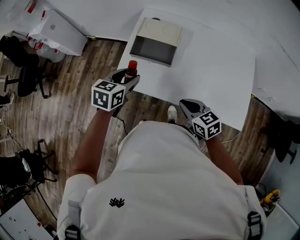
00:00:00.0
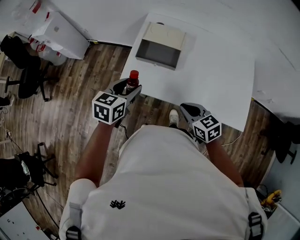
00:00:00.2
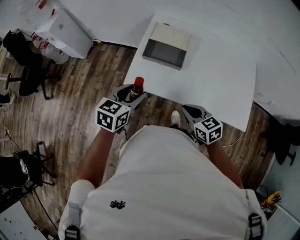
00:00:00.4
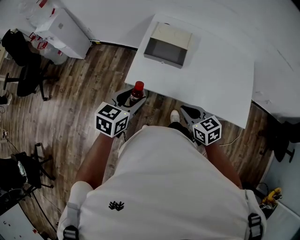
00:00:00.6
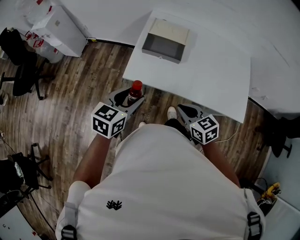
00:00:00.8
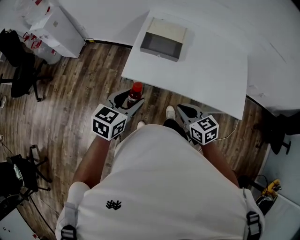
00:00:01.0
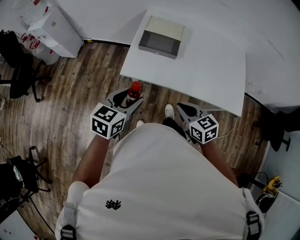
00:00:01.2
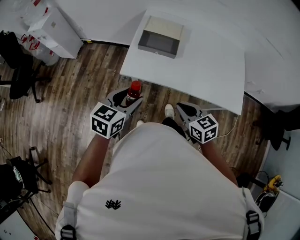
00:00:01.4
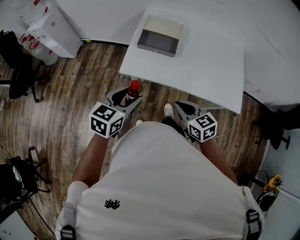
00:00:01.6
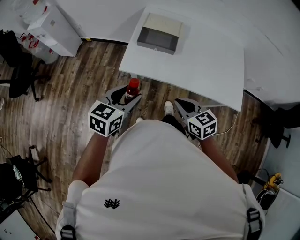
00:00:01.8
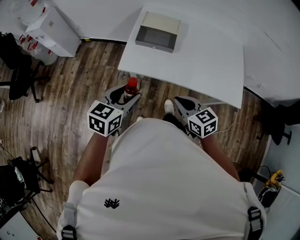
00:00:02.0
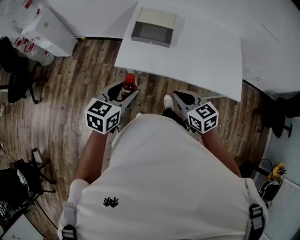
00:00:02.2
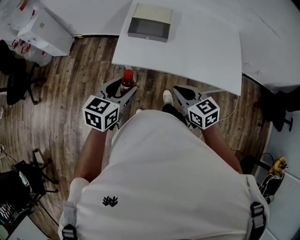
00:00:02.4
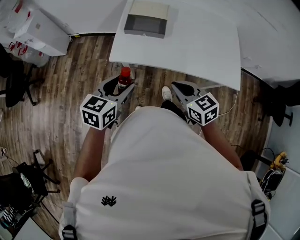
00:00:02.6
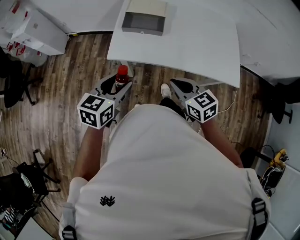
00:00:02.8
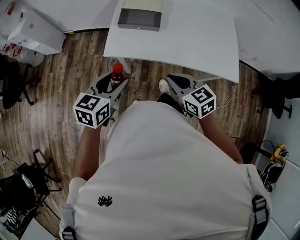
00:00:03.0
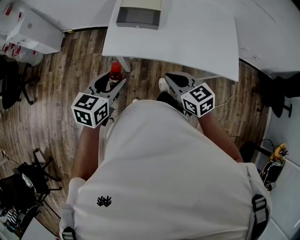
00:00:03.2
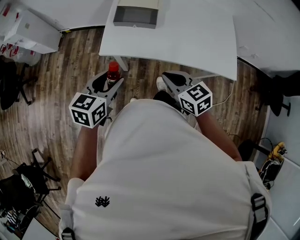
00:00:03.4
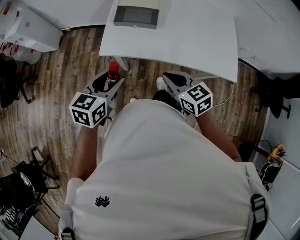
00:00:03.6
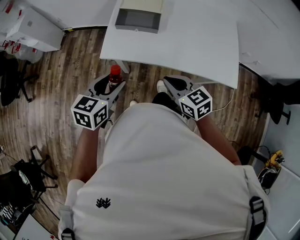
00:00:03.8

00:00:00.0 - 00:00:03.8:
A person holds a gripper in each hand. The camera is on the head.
00:00:00.0 - 00:00:01.2: The right gripper moves backward and to the left, approximately 10 cm. Meanwhile the left gripper goes about 15 cm backward.
00:00:01.2 - 00:00:03.8: The grippers make only small movements.

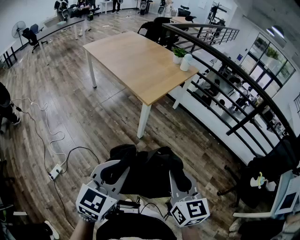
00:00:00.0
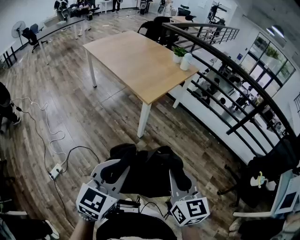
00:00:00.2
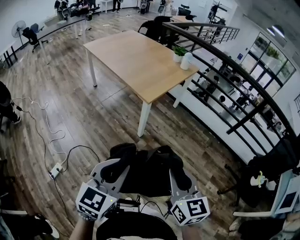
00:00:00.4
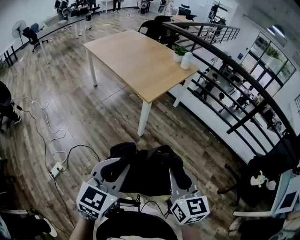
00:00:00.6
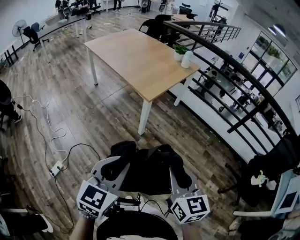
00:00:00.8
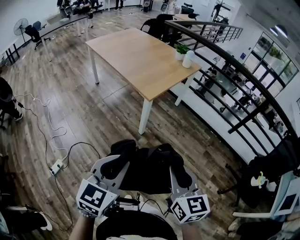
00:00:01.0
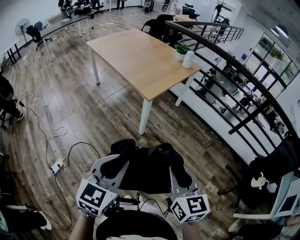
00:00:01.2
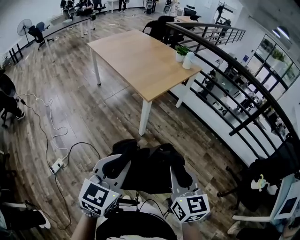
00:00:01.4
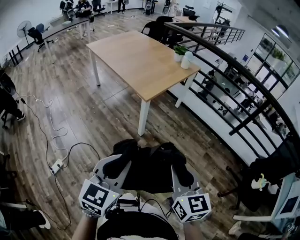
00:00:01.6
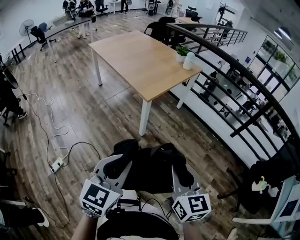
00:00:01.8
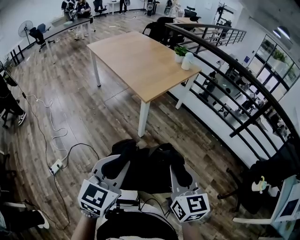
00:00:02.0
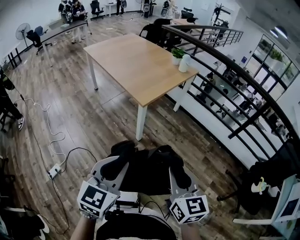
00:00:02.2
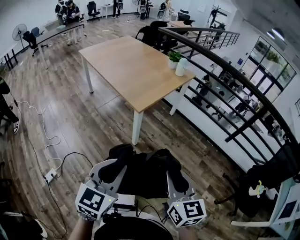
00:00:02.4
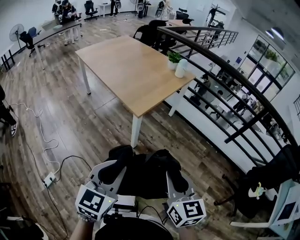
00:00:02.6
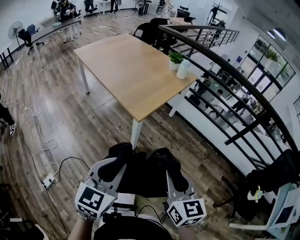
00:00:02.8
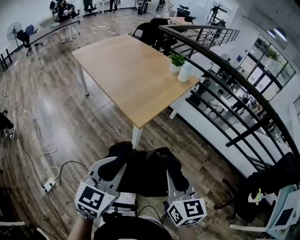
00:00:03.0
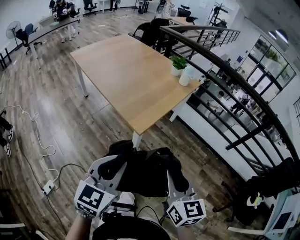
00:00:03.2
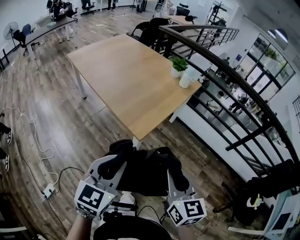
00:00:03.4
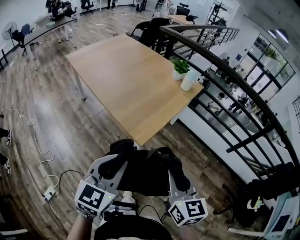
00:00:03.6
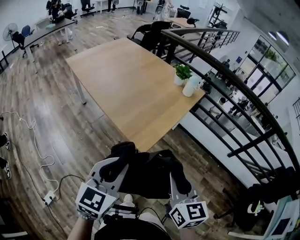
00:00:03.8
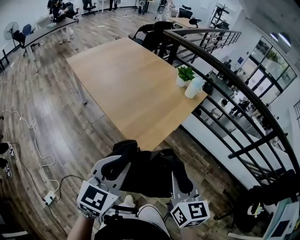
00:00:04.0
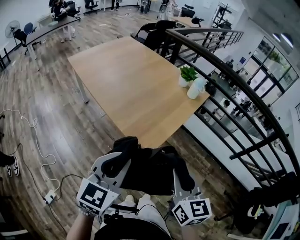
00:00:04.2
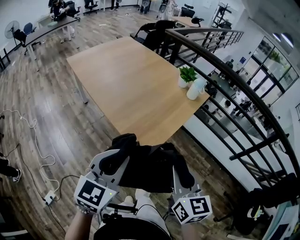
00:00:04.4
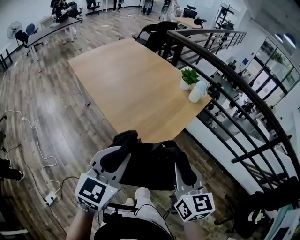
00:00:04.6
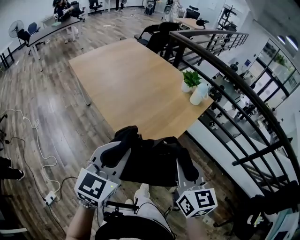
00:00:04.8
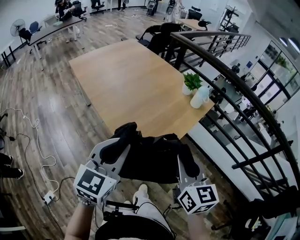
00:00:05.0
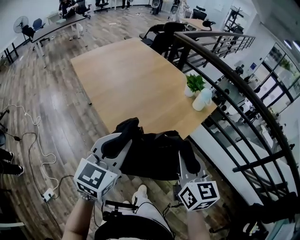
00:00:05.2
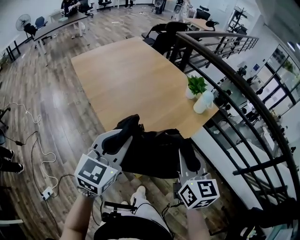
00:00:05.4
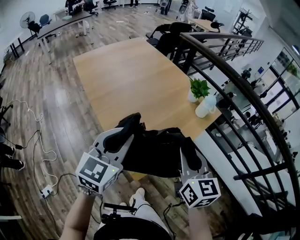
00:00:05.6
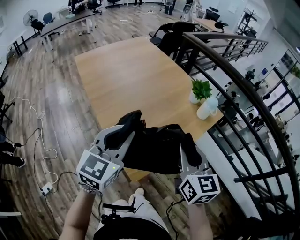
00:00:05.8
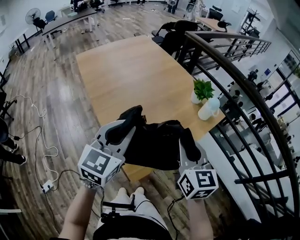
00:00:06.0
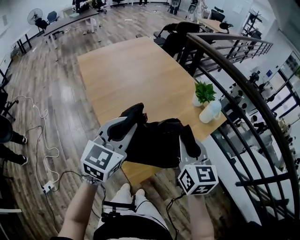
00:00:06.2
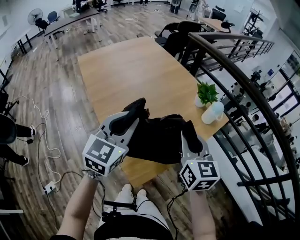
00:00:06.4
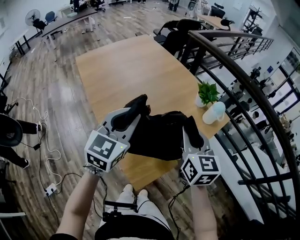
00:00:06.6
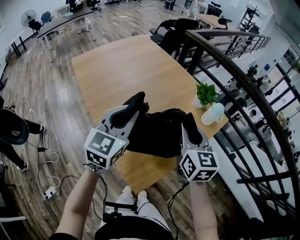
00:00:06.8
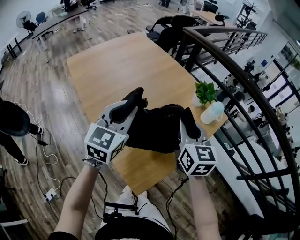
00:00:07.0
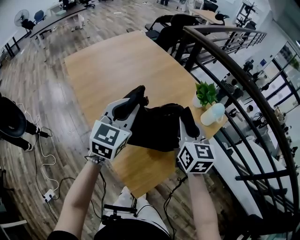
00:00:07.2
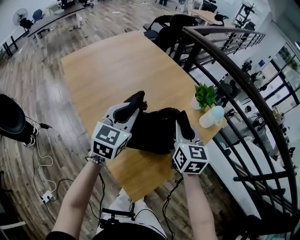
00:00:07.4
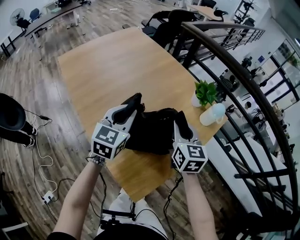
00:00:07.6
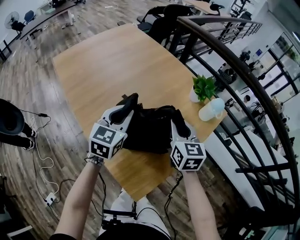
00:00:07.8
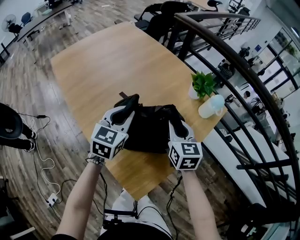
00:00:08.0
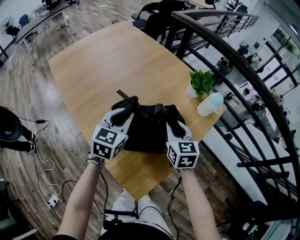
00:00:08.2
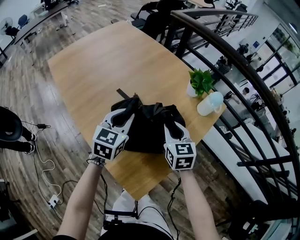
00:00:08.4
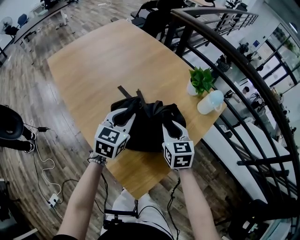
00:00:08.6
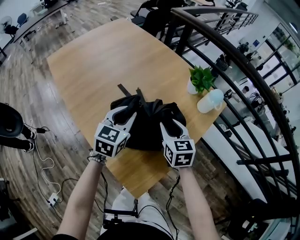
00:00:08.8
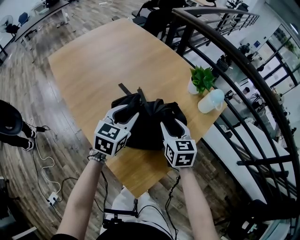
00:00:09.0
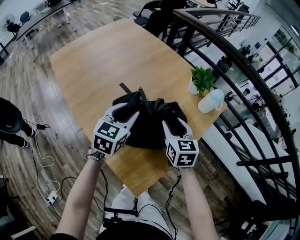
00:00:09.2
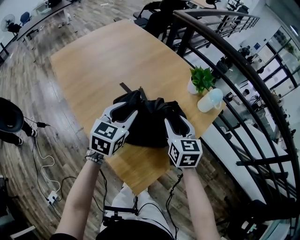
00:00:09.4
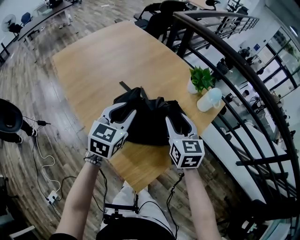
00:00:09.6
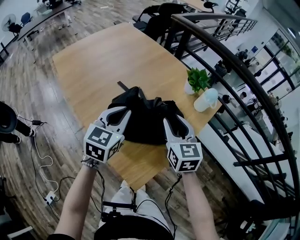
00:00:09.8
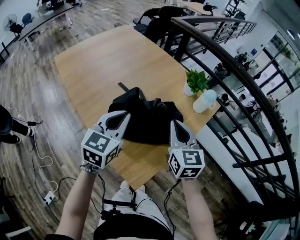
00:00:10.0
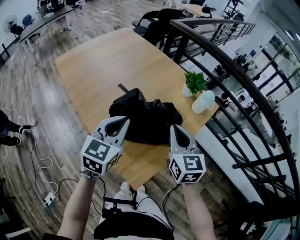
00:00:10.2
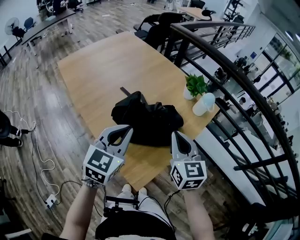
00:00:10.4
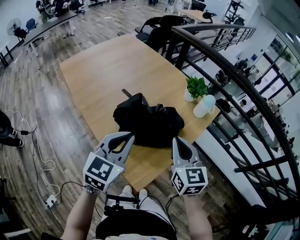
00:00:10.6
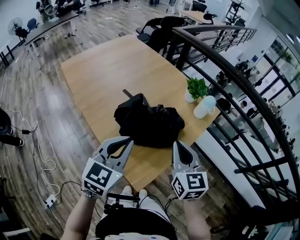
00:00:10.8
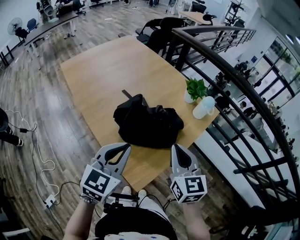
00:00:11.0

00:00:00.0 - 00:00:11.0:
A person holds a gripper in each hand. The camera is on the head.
00:00:00.0 - 00:00:01.6: The right gripper heads to the right, covering about 5 cm.
00:00:01.6 - 00:00:03.2: Both grippers move forward, about 25 cm.
00:00:03.2 - 00:00:04.8: The grippers both shift forward by approximately 25 cm.
00:00:04.8 - 00:00:06.2: The two grippers go some 20 cm forward.
00:00:06.2 - 00:00:07.8: The two grippers go some 20 cm forward and downward.
00:00:07.8 - 00:00:09.4: The right gripper opens. Meanwhile the left gripper opens.
00:00:09.4 - 00:00:11.0: The two grippers go about 20 cm backward and upward. The right gripper closes its fingers, while the left gripper closes.

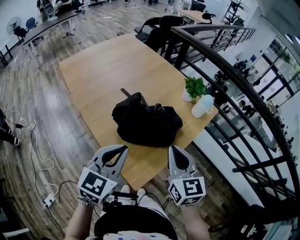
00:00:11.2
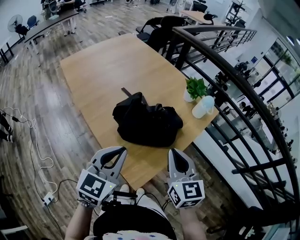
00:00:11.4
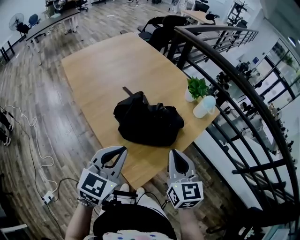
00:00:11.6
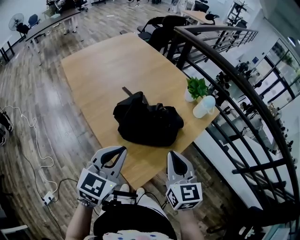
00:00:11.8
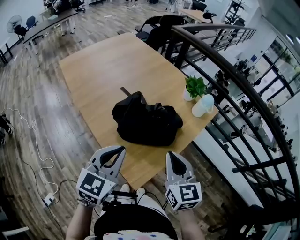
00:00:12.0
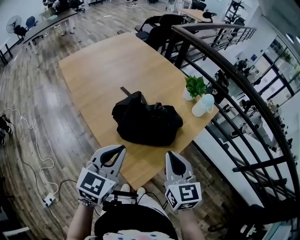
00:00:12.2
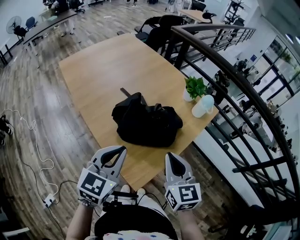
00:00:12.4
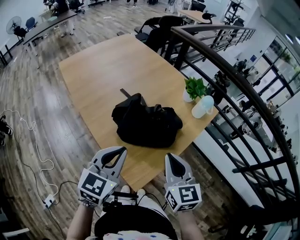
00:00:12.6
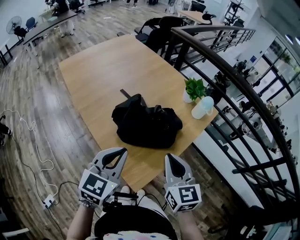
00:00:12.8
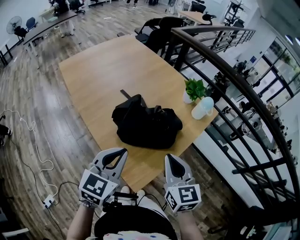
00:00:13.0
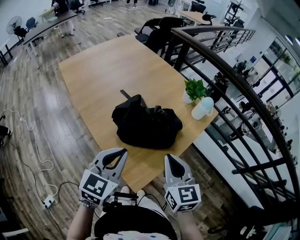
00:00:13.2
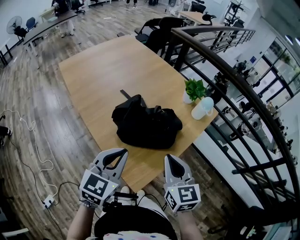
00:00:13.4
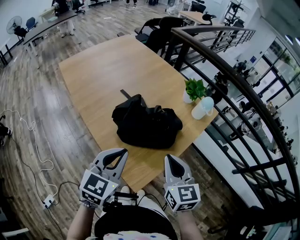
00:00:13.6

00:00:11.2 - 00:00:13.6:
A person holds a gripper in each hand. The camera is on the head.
00:00:11.2 - 00:00:12.4: There are only small adjustments of the grippers.
00:00:12.4 - 00:00:13.6: The two grippers keep their place.

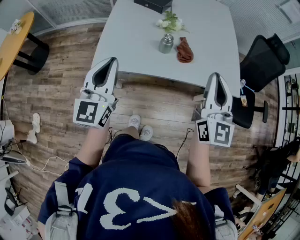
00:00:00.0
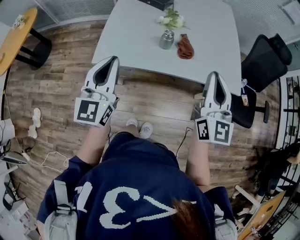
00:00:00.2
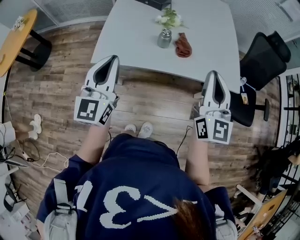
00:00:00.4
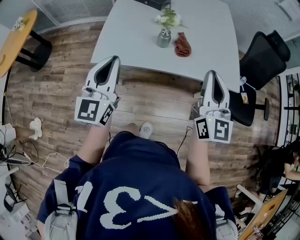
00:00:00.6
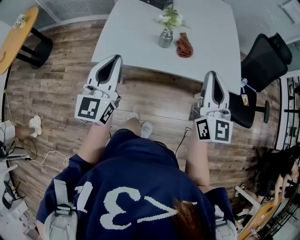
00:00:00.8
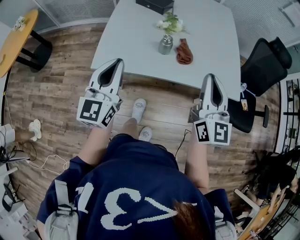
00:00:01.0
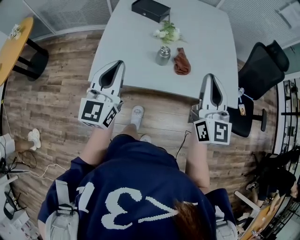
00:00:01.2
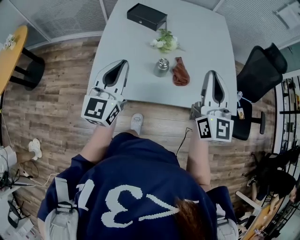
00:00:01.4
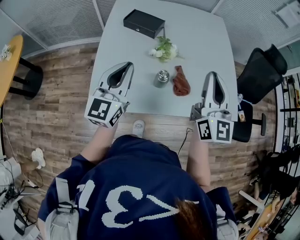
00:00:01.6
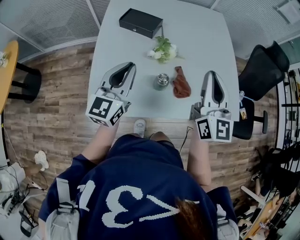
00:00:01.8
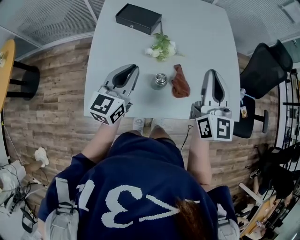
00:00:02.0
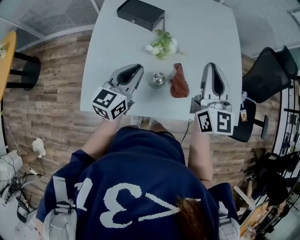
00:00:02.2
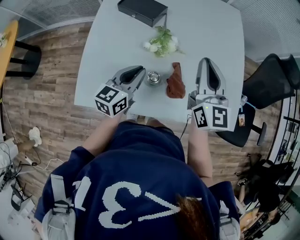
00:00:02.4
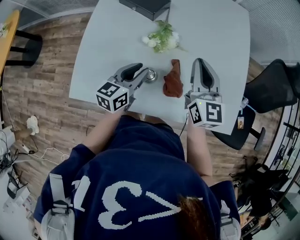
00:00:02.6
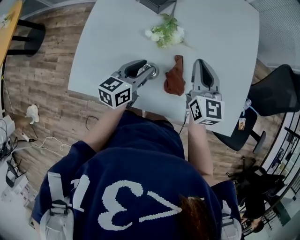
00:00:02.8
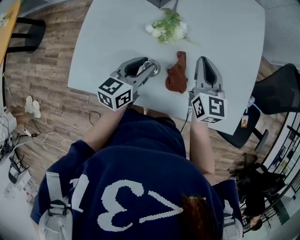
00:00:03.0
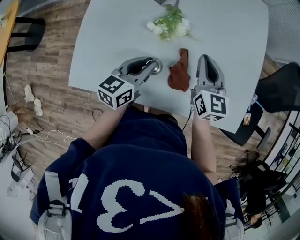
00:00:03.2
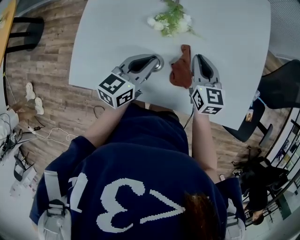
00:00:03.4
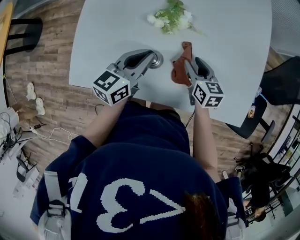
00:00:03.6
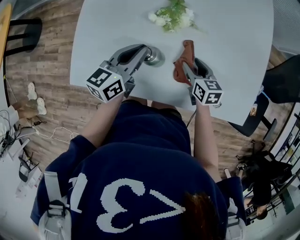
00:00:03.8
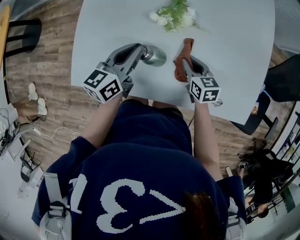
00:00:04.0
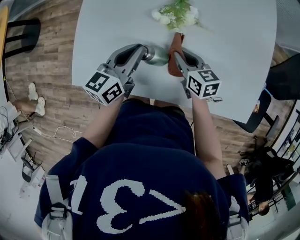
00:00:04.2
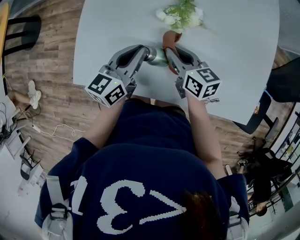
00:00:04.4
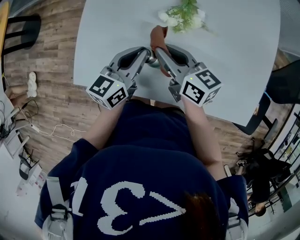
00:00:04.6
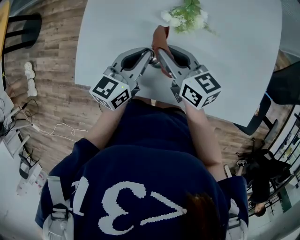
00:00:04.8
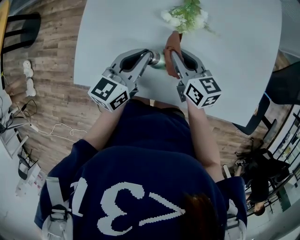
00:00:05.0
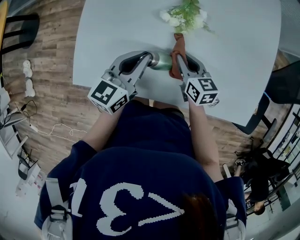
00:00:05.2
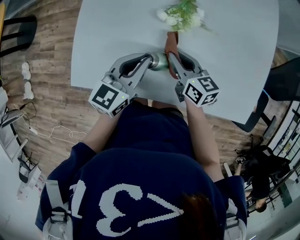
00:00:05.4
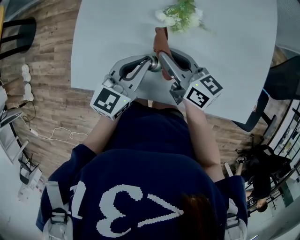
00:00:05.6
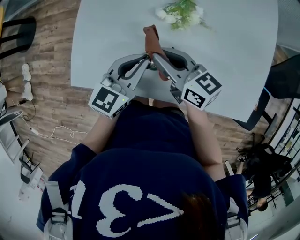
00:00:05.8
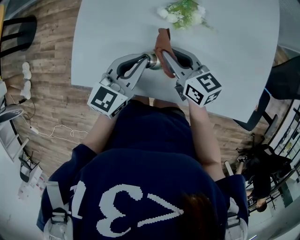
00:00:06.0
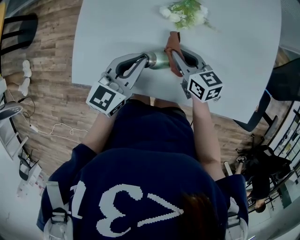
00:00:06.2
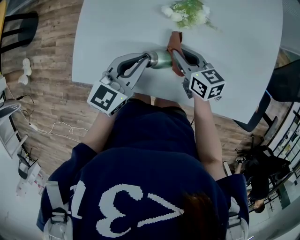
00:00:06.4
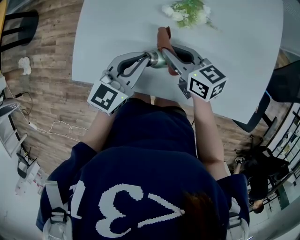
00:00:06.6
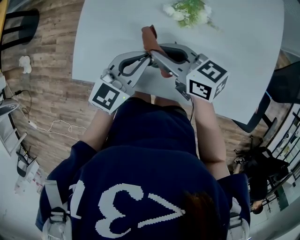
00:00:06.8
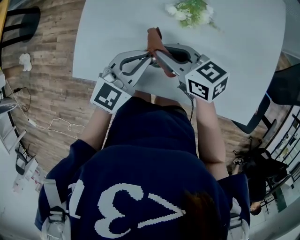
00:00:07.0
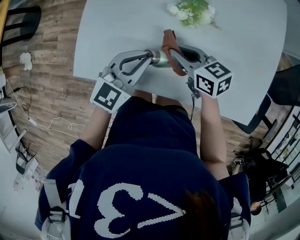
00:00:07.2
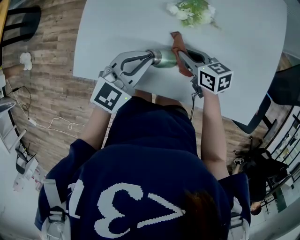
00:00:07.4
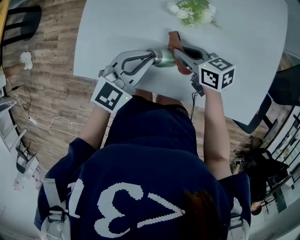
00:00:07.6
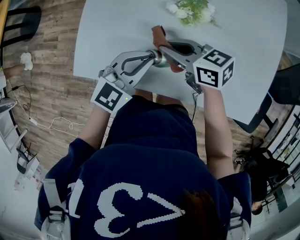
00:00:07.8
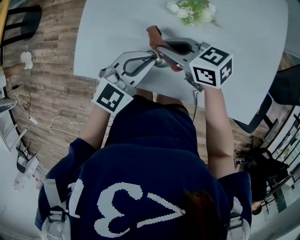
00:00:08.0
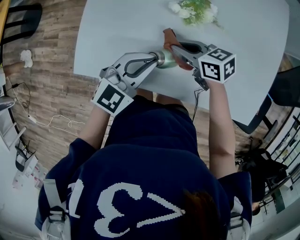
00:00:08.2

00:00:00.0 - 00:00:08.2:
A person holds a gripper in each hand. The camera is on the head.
00:00:00.0 - 00:00:01.6: The grippers both shift forward by approximately 20 cm.
00:00:01.6 - 00:00:03.2: The right gripper shifts some 30 cm downward and forward, and rotates roughly 30 degrees. The left gripper heads downward, to the right and forward, covering approximately 25 cm, and rotates about 40 degrees.
00:00:03.2 - 00:00:05.0: The right gripper moves to the left and downward, roughly 15 cm, swivels roughly 30 degrees, and opens, then closes again. The left gripper shifts about 10 cm to the left.
00:00:05.0 - 00:00:06.6: The right gripper goes up and down, some 10 cm each way, reversing 3 times.
00:00:06.6 - 00:00:08.2: The left gripper changes its angle by about 20 degrees; the right gripper moves up and down over roughly 10 cm, changing direction 3 times.
